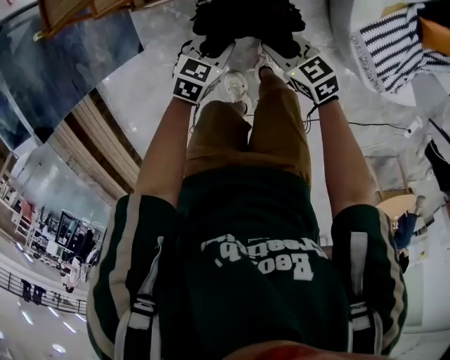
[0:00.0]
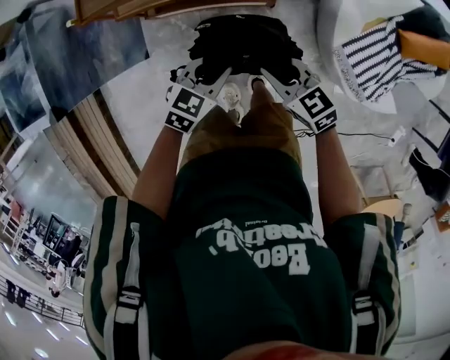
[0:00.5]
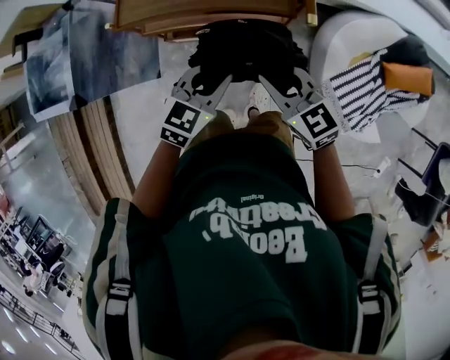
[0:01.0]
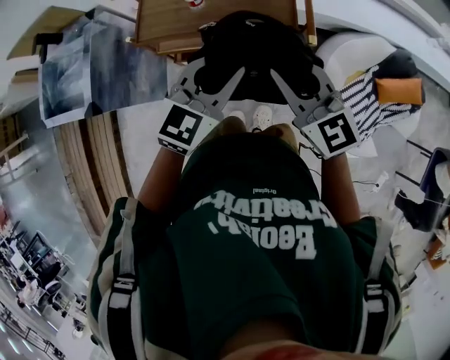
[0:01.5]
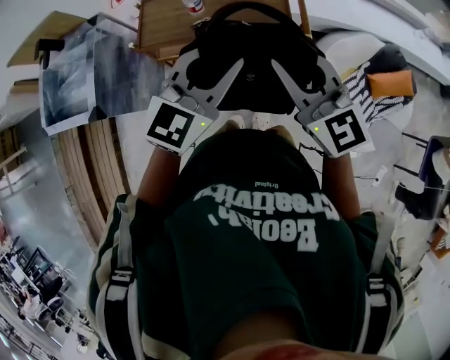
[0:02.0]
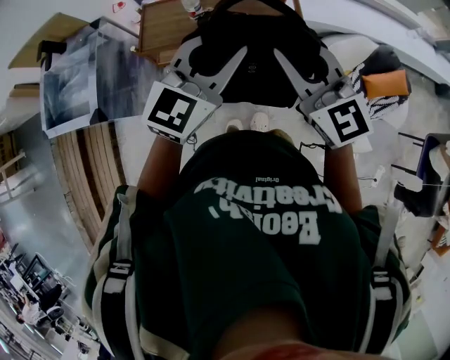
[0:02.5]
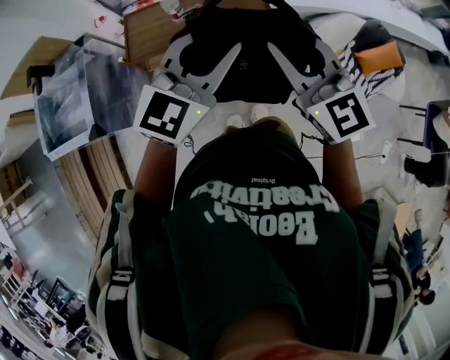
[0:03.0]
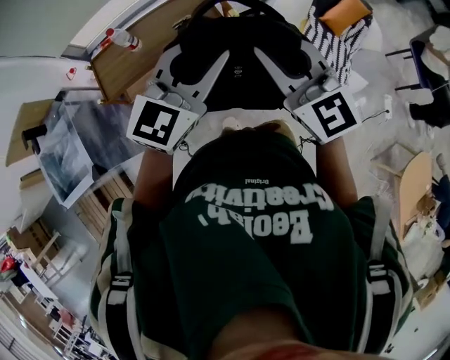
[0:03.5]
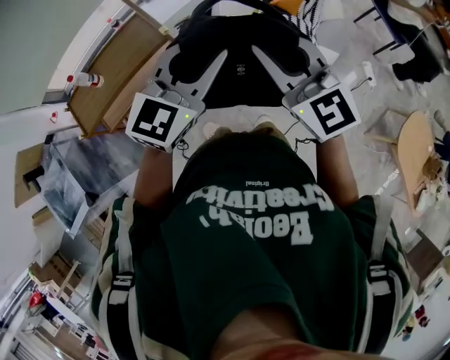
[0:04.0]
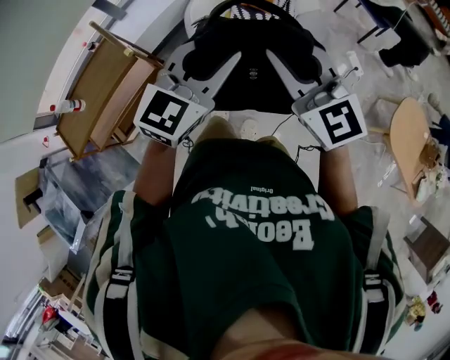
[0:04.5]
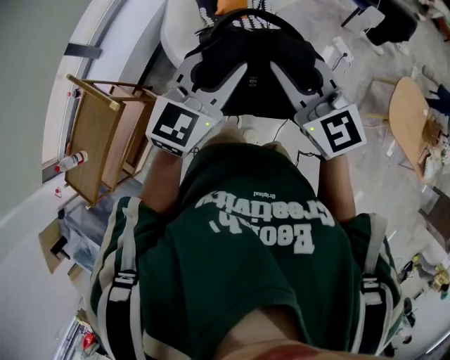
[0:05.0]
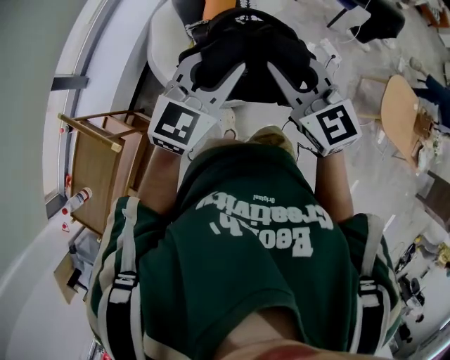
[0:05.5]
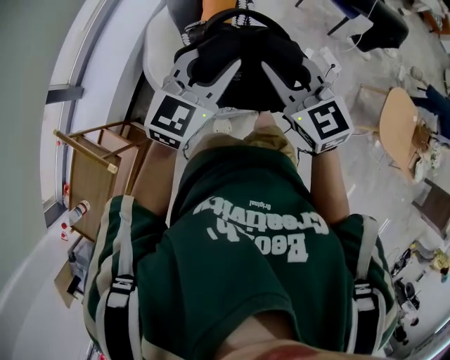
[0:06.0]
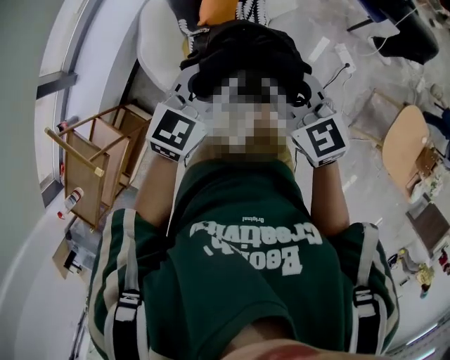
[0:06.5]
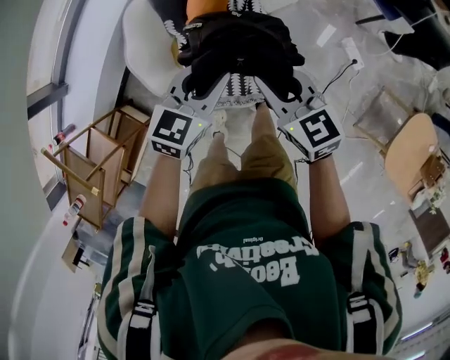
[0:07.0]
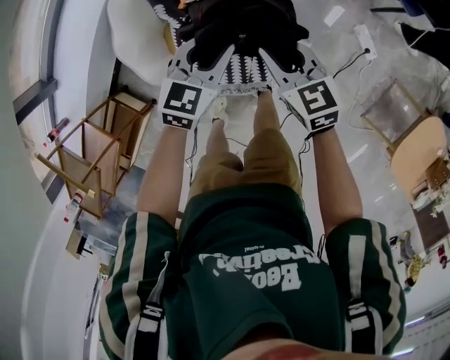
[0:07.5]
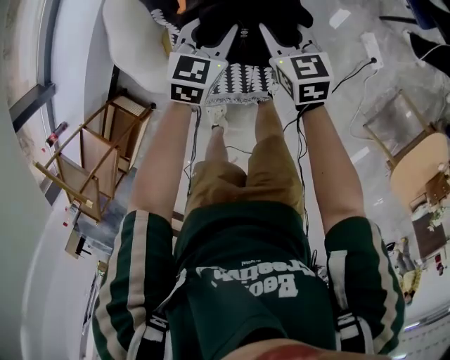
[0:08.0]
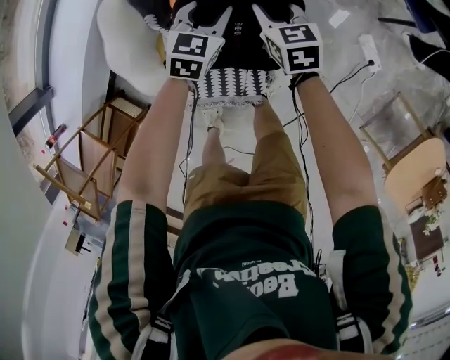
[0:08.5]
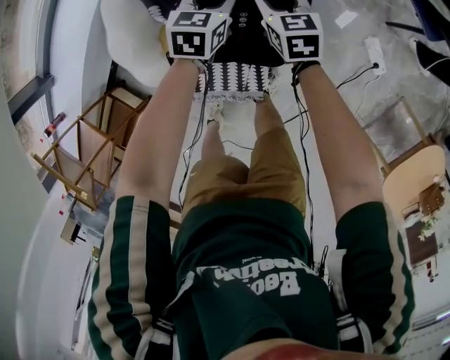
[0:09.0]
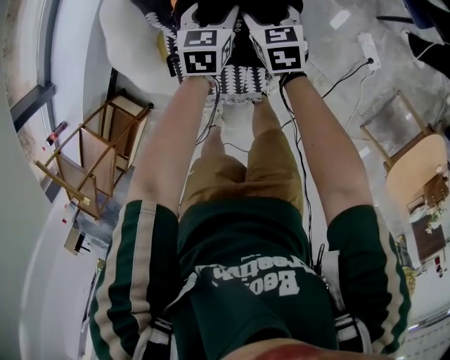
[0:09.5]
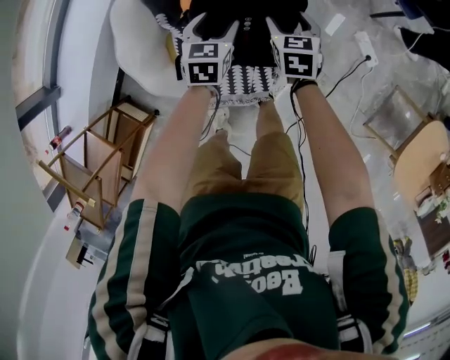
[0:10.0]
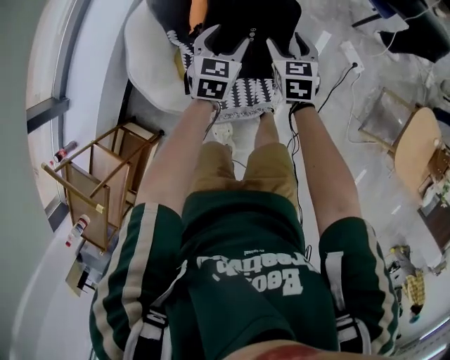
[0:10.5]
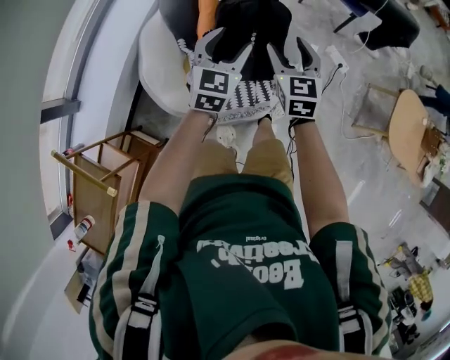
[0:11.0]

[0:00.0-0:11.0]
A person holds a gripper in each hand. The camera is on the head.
0.0 to 2.0 s: Both grippers move upward, roughly 60 cm. The left gripper points its fingers approximately 40 degrees further upward, while the right gripper angles its fingers upward, by roughly 30 degrees.
2.0 to 3.5 s: Both grippers move to the right and backward, roughly 15 cm. The right gripper turns by some 20 degrees. Meanwhile the left gripper turns by approximately 20 degrees.
3.5 to 5.5 s: The two grippers travel together, some 60 cm. The right gripper changes its angle by roughly 40 degrees, while the left gripper rotates about 40 degrees.
5.5 to 7.5 s: Both grippers are carried forward and to the right, roughly 40 cm. Both grippers travel together downward, roughly 40 cm. The left gripper rotates roughly 30 degrees, while the right gripper changes its angle by roughly 30 degrees.
7.5 to 9.0 s: Both grippers travel together forward and downward, approximately 25 cm.
9.0 to 11.0 s: Both grippers travel together upward and backward, roughly 50 cm. The right gripper changes its angle by approximately 30 degrees, and opens; the left gripper rotates roughly 30 degrees, and opens up.

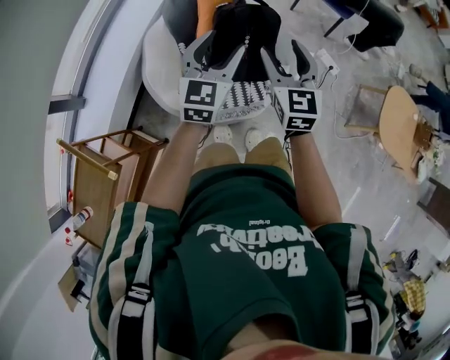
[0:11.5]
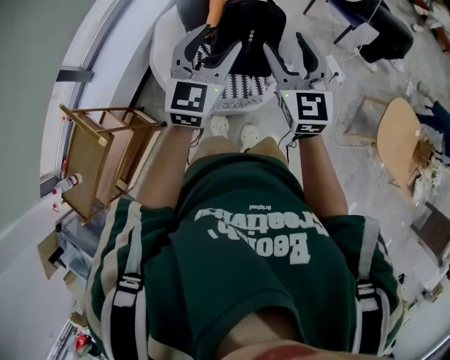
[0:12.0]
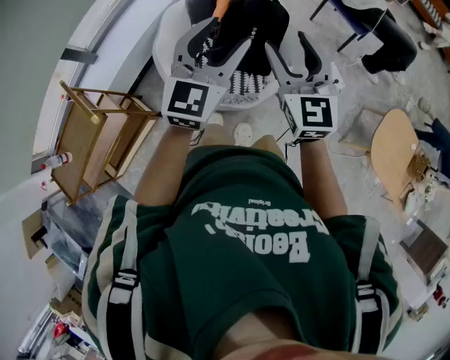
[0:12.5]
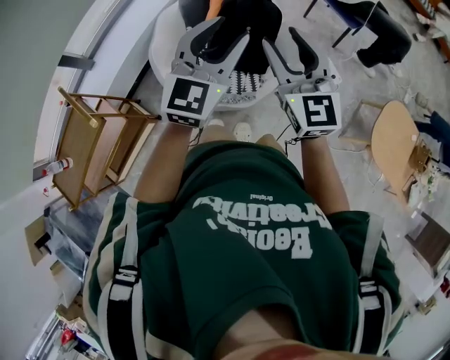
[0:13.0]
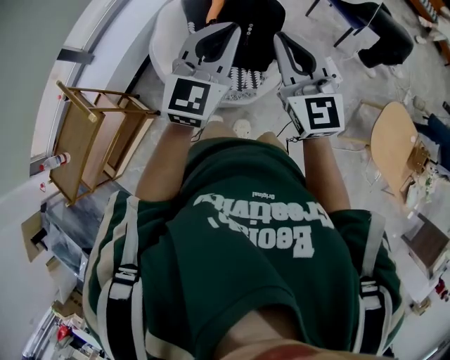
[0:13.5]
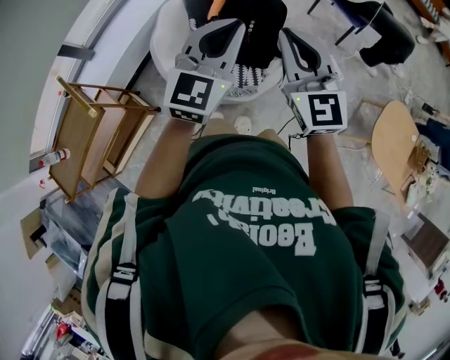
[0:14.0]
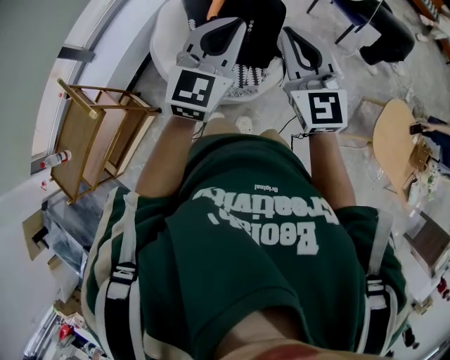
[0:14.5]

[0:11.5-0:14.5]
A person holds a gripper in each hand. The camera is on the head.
11.5 to 13.0 s: Both grippers move backward, upward and to the right, some 20 cm. The right gripper changes its angle by about 20 degrees.
13.0 to 14.5 s: The left gripper closes, while the right gripper closes its fingers.

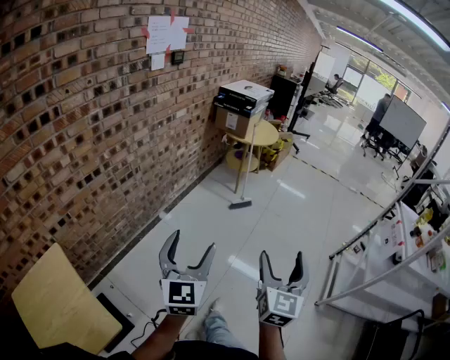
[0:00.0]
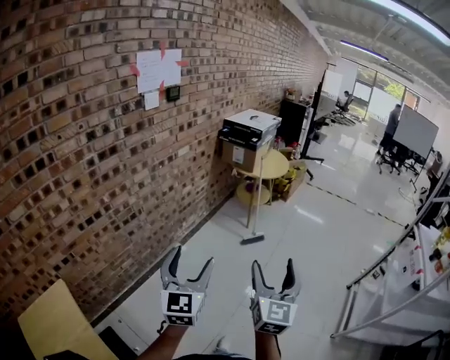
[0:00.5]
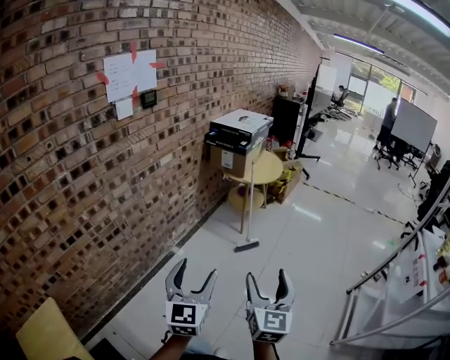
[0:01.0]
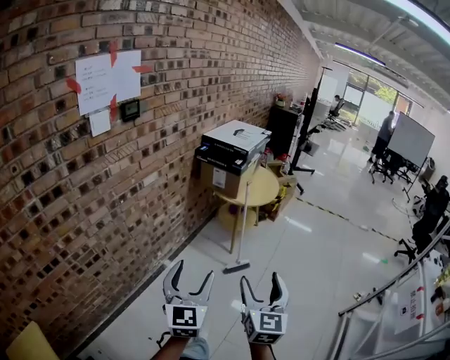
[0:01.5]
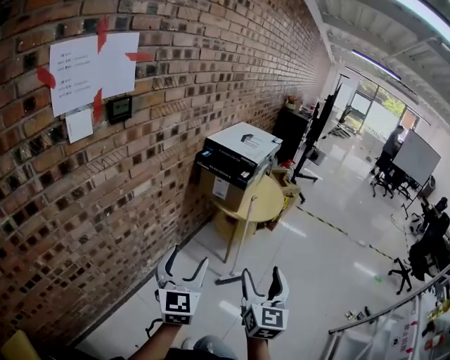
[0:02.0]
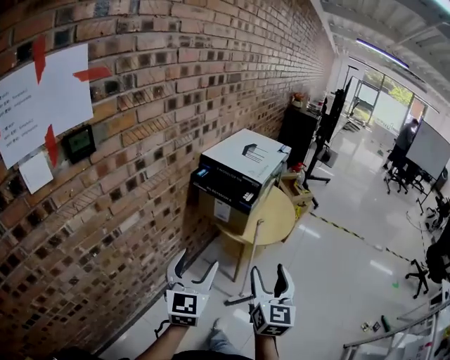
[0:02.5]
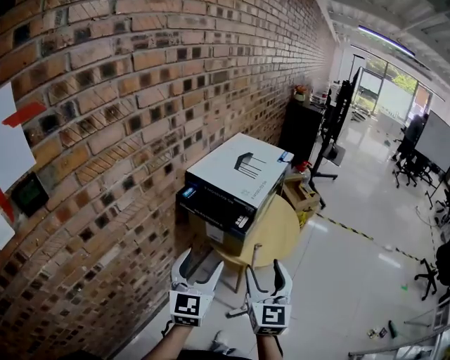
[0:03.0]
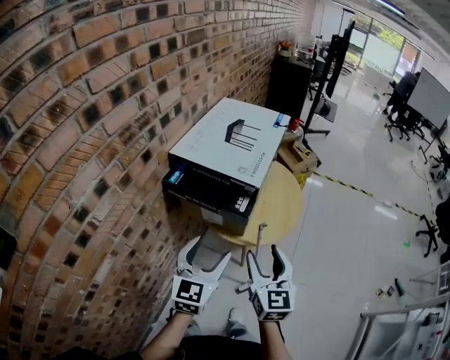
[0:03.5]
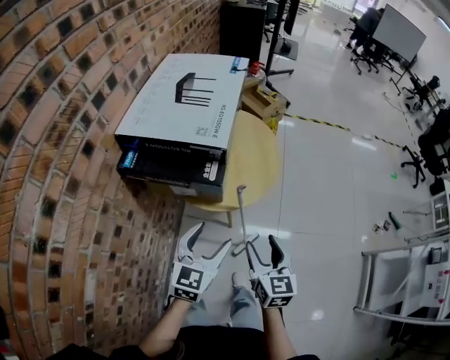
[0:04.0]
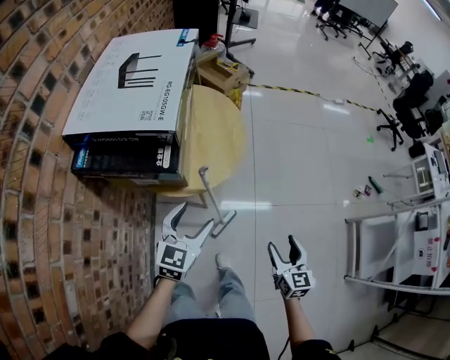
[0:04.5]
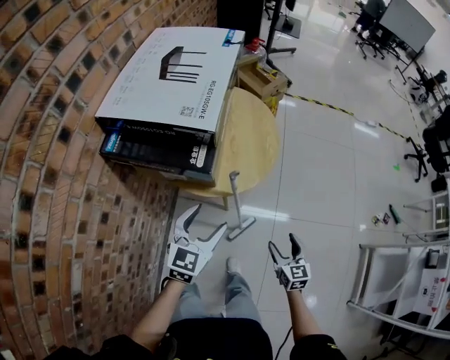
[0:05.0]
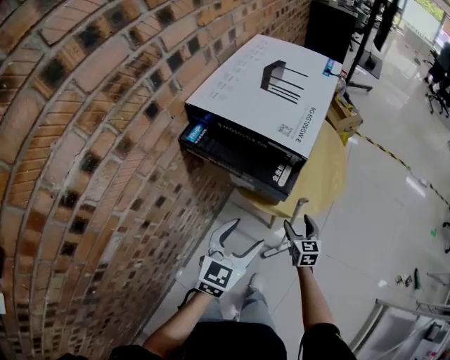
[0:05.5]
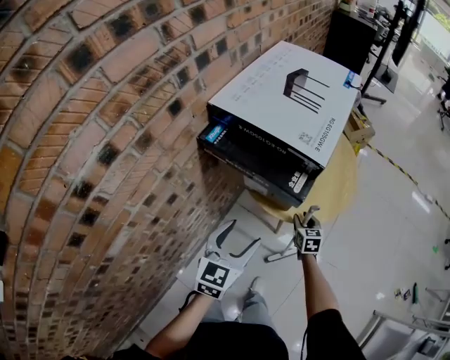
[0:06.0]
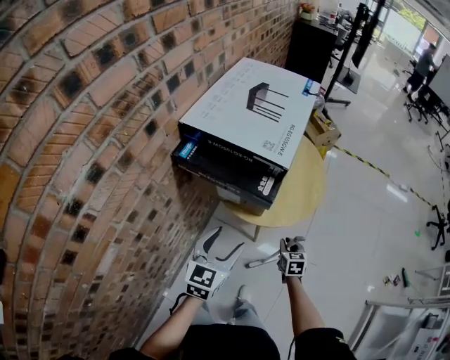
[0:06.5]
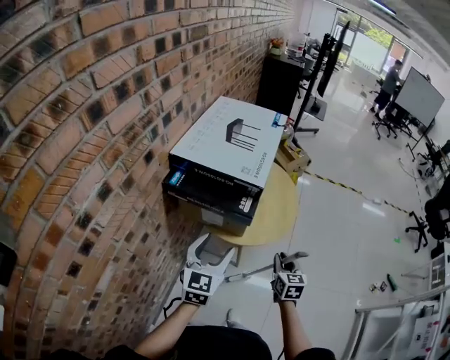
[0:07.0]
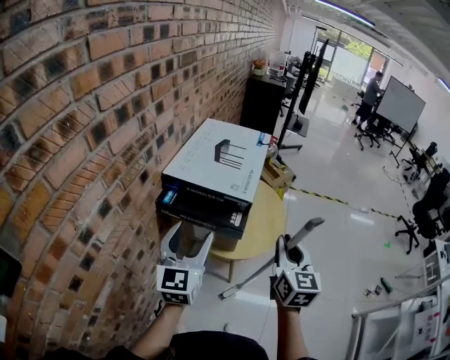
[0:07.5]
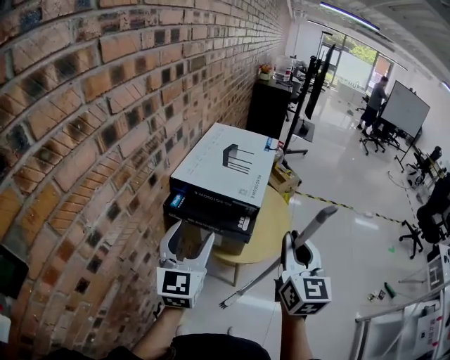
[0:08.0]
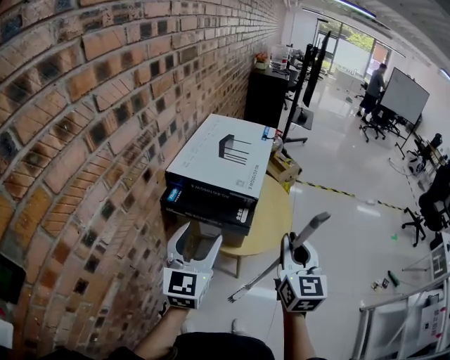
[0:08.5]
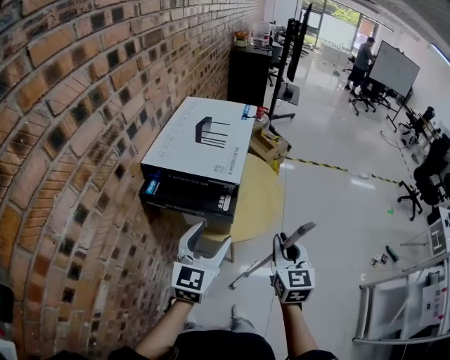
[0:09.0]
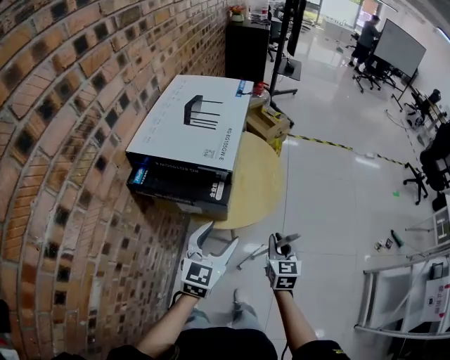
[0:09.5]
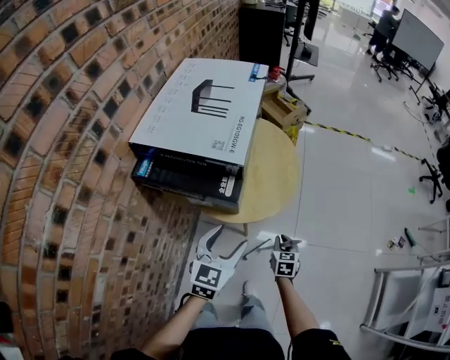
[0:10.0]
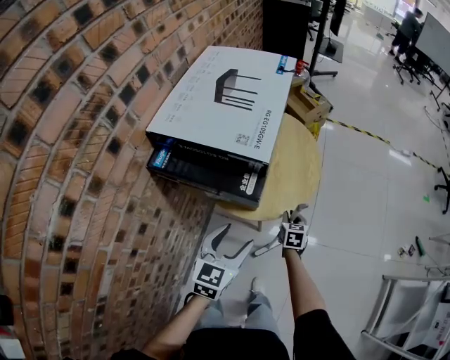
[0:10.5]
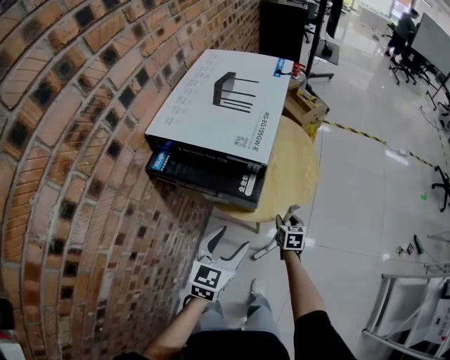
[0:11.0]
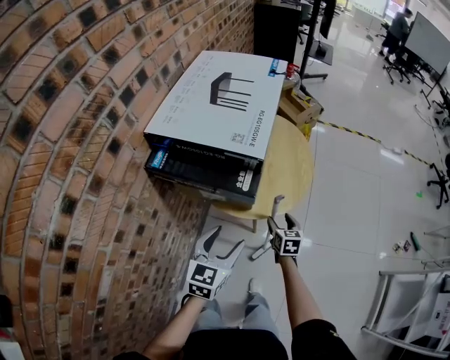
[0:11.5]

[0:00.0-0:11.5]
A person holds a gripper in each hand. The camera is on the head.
0.0 to 2.0 s: The two grippers travel together, forward, about 60 cm.
2.0 to 4.0 s: The right gripper changes place by roughly 40 cm, and rotates roughly 30 degrees. The left gripper shifts by approximately 50 cm, and rotates about 50 degrees.
4.0 to 6.0 s: The right gripper shifts roughly 25 cm downward, and swivels roughly 30 degrees. Meanwhile the left gripper shifts by some 10 cm, and swivels roughly 20 degrees.
6.0 to 7.5 s: The right gripper shifts some 50 cm upward, and tips its fingers upward by approximately 30 degrees. Meanwhile the left gripper travels upward by about 20 cm, and swivels about 20 degrees.
7.5 to 9.5 s: The right gripper shifts some 25 cm downward. The left gripper heads downward and to the right, covering about 20 cm, and swivels approximately 30 degrees.
9.5 to 11.5 s: The left gripper heads downward, covering about 5 cm. The right gripper is displaced downward, forward and to the left by approximately 20 cm, and opens its fingers.

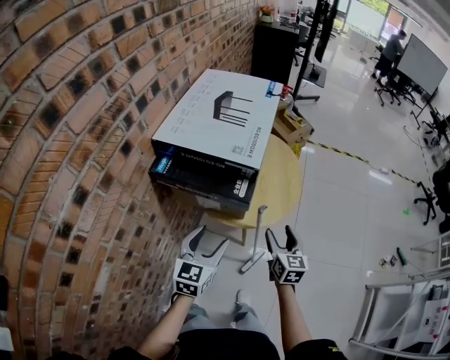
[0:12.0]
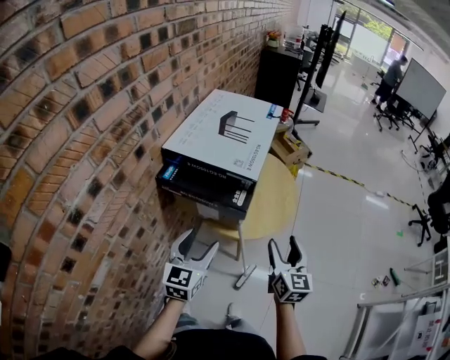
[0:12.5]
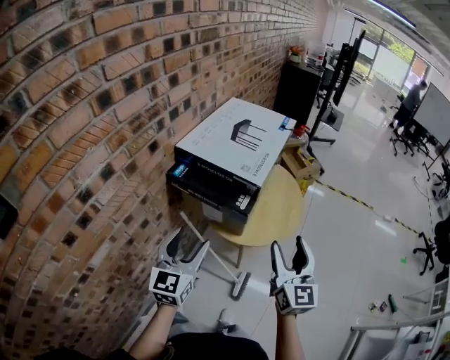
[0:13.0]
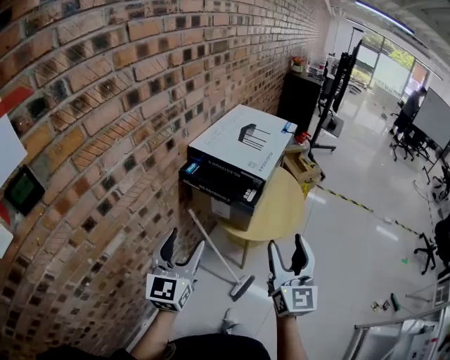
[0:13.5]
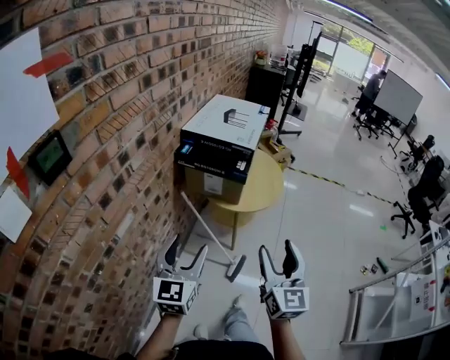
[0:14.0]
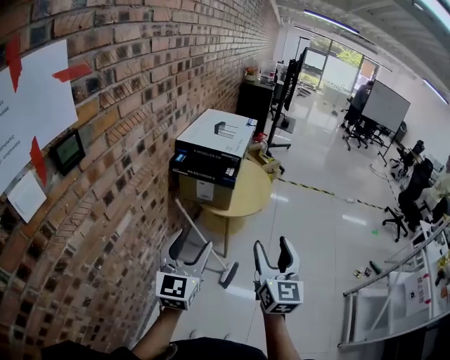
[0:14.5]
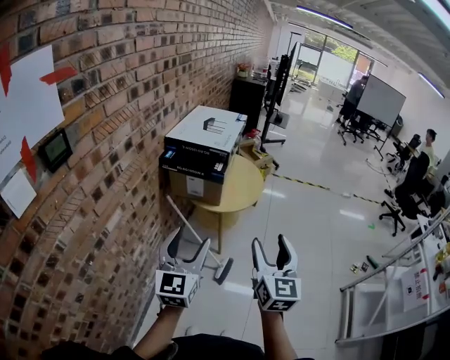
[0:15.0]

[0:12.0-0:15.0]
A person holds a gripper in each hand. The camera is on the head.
12.0 to 13.5 s: The left gripper moves upward, backward and to the left, about 20 cm, and turns by roughly 30 degrees, while the right gripper moves upward and backward, roughly 30 cm, and tilts its fingers some 30 degrees upward.
13.5 to 15.0 s: Both grippers travel together backward, some 20 cm.
